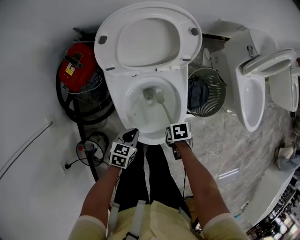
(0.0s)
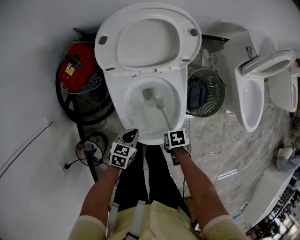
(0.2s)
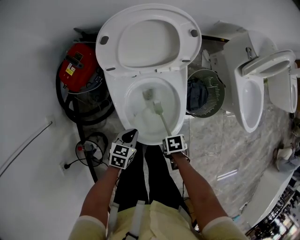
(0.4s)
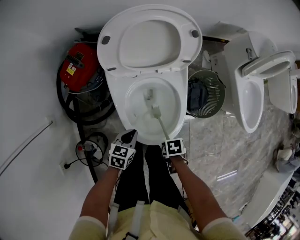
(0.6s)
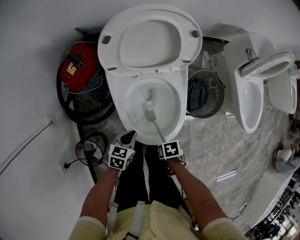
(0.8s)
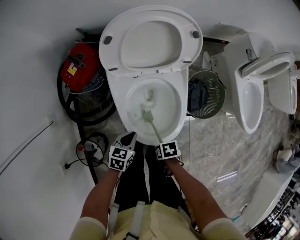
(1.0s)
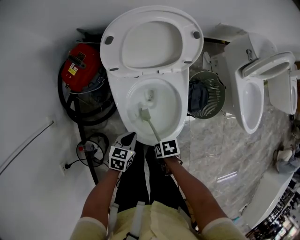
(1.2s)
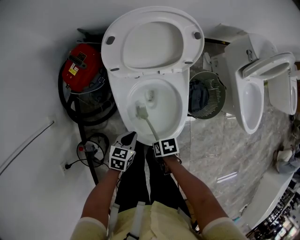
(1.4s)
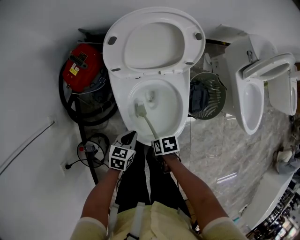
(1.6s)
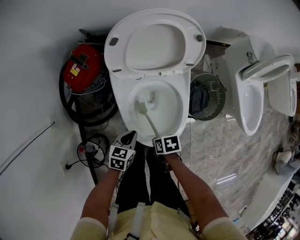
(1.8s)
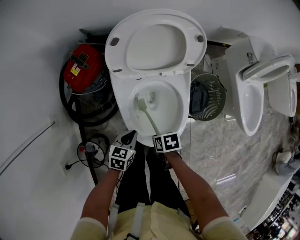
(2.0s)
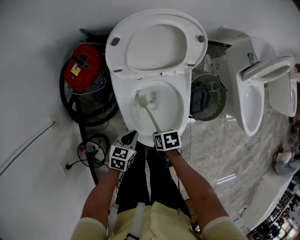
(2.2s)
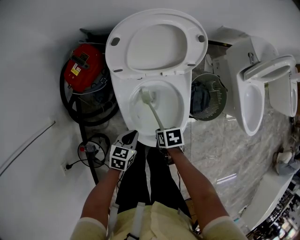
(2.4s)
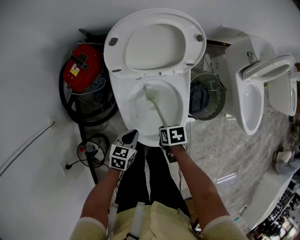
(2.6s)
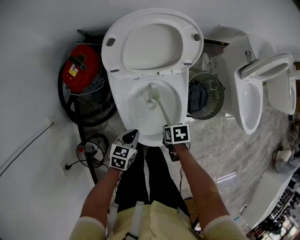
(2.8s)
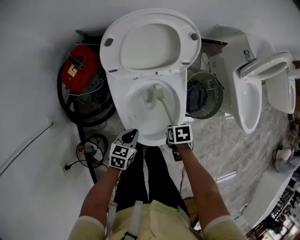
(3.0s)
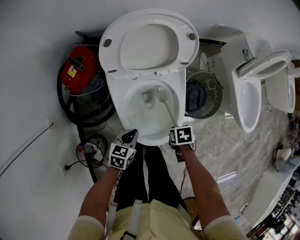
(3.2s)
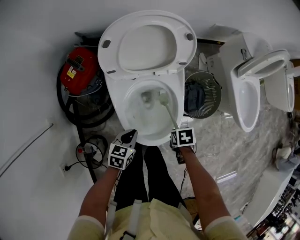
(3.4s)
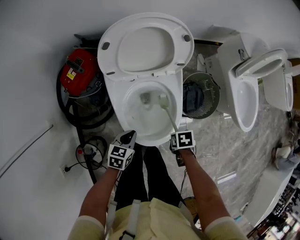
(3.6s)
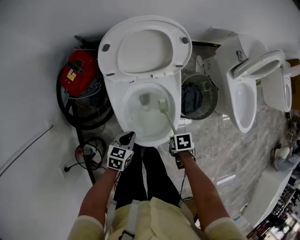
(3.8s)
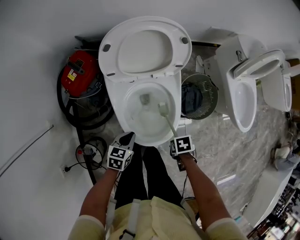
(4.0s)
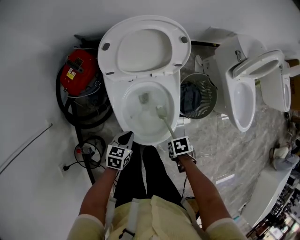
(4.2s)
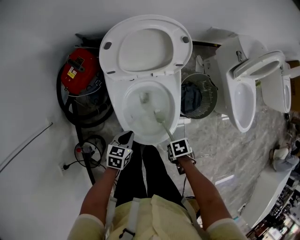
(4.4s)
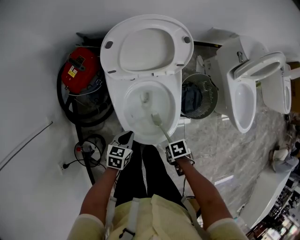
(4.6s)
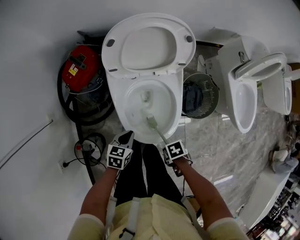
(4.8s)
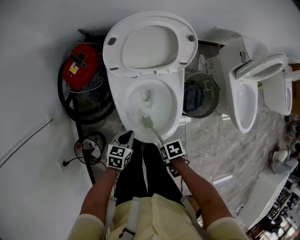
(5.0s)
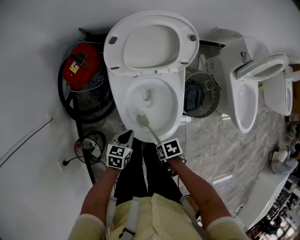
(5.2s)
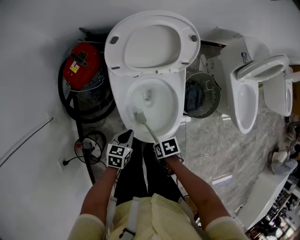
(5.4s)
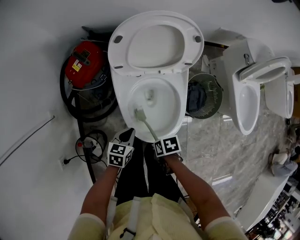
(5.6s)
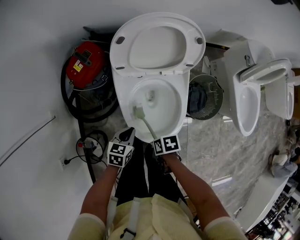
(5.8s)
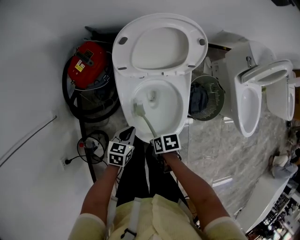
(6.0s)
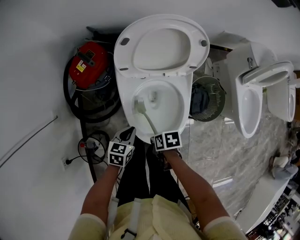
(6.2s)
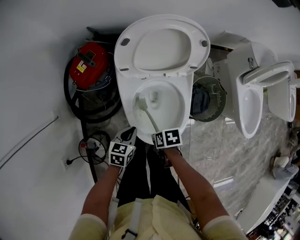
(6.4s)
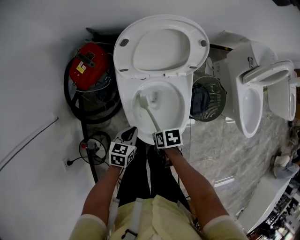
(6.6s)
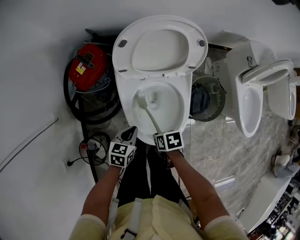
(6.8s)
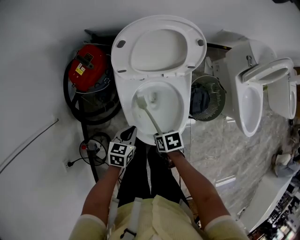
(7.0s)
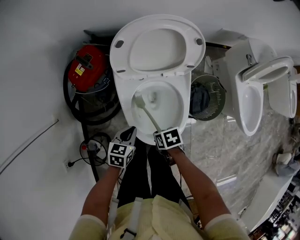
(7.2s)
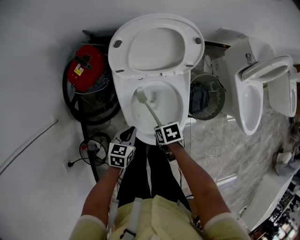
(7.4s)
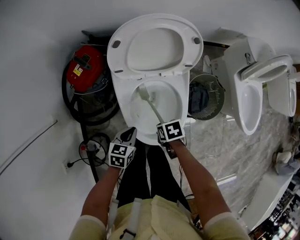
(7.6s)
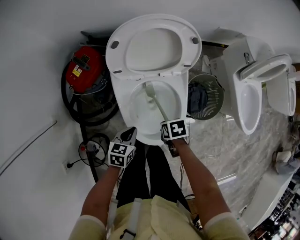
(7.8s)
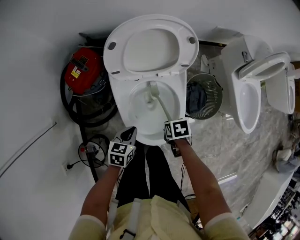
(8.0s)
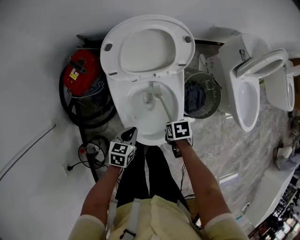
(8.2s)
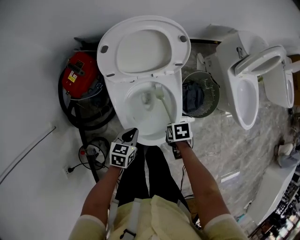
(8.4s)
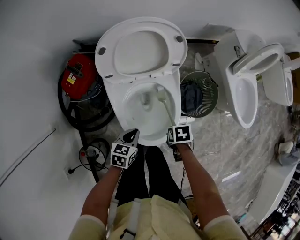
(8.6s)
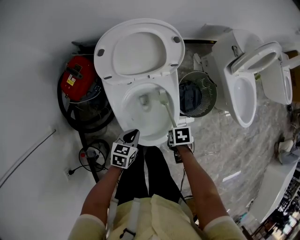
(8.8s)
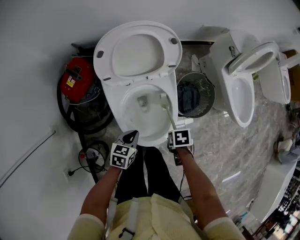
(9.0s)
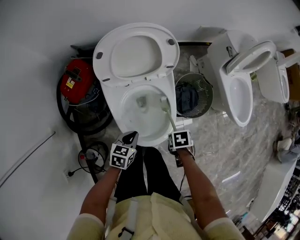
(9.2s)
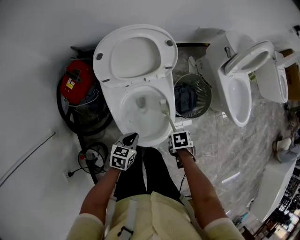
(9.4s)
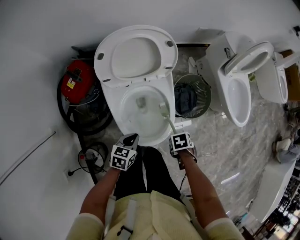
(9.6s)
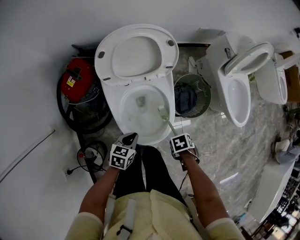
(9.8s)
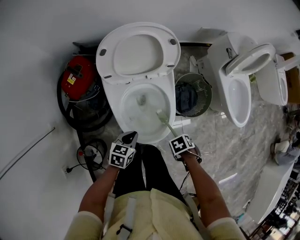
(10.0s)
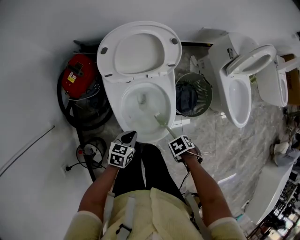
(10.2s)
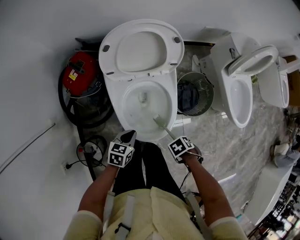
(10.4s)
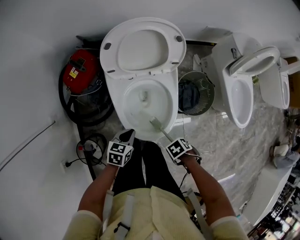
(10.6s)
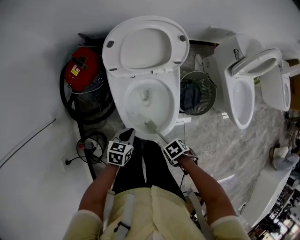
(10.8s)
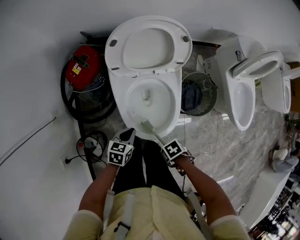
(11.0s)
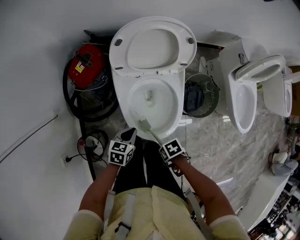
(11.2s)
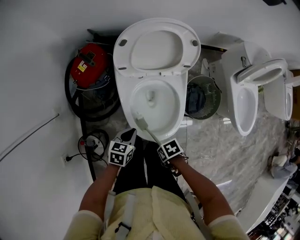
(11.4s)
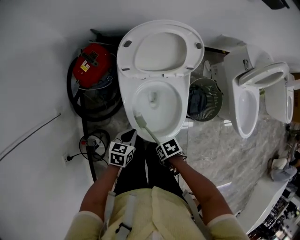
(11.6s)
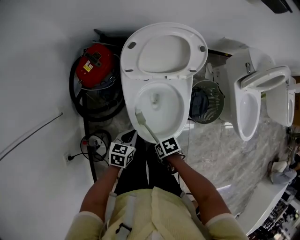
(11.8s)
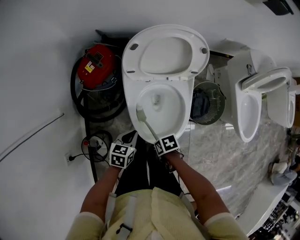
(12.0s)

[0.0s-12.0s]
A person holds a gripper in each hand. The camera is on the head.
7.6s to 9.0s: The left gripper ends up roughly 5 cm from where it was.
10.4s to 12.0s: The left gripper ends up approximately 5 cm from where it was.

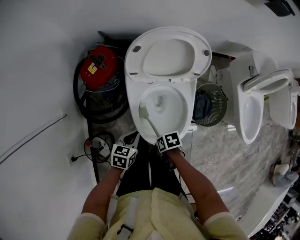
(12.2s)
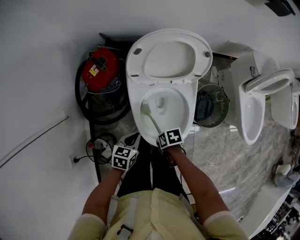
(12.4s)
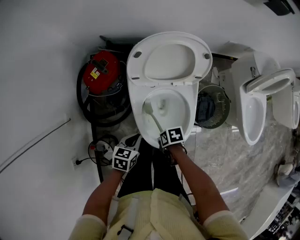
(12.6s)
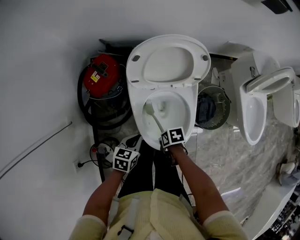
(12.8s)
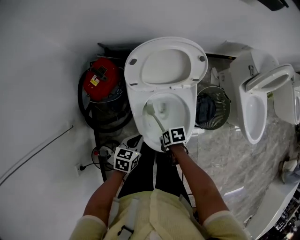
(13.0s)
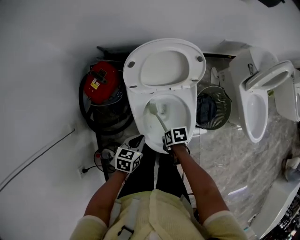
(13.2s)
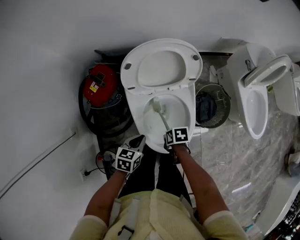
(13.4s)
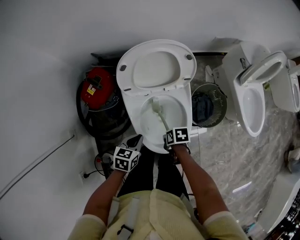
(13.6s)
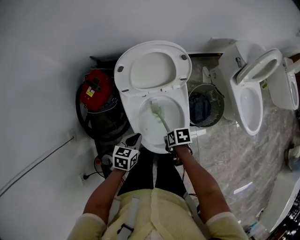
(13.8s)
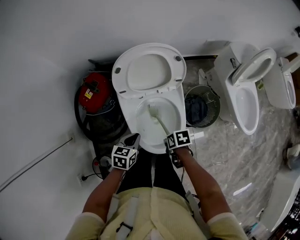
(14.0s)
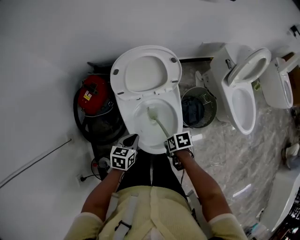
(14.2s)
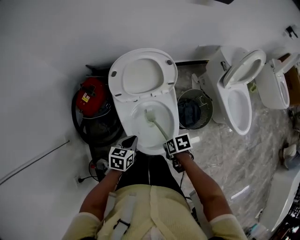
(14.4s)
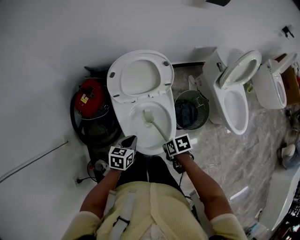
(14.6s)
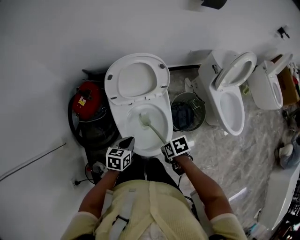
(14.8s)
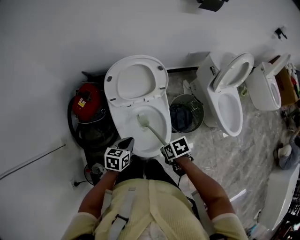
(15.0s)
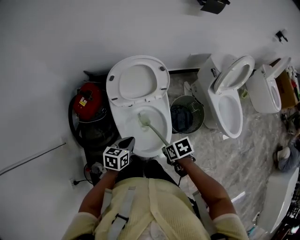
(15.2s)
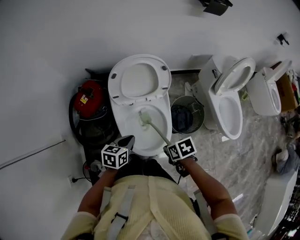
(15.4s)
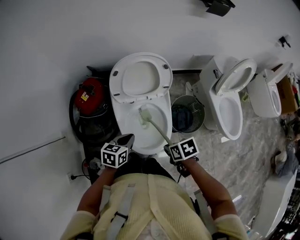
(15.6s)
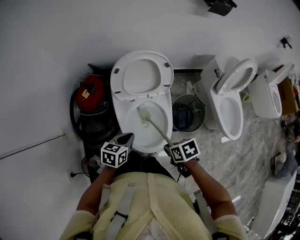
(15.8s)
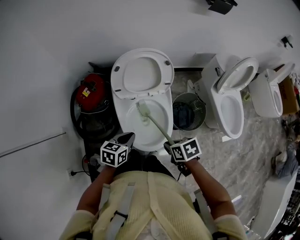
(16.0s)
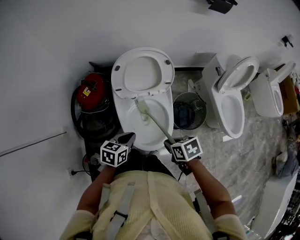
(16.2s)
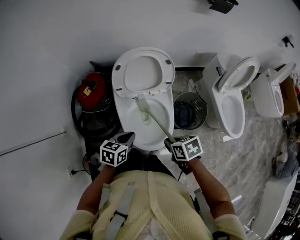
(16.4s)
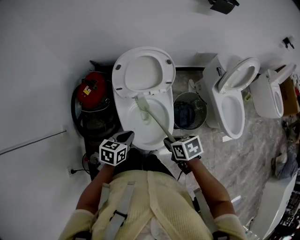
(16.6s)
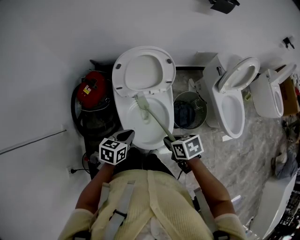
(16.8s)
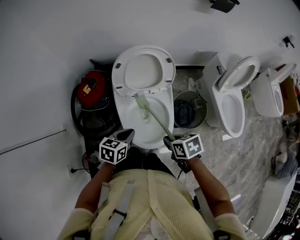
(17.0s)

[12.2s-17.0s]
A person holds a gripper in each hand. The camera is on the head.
12.2s to 13.8s: The left gripper moves roughly 5 cm.
13.8s to 15.4s: The left gripper is displaced upward by roughly 10 cm.

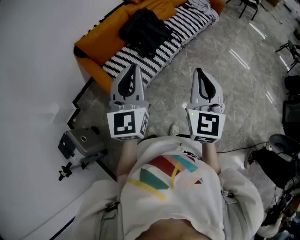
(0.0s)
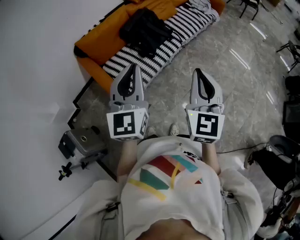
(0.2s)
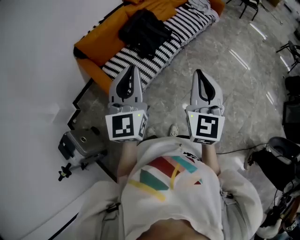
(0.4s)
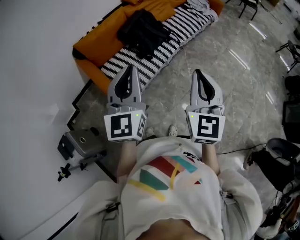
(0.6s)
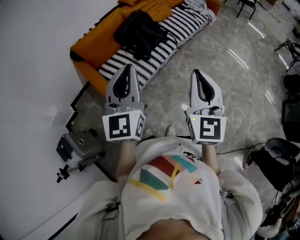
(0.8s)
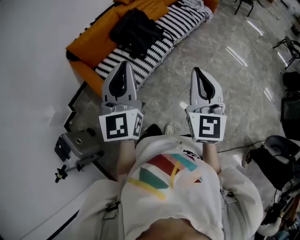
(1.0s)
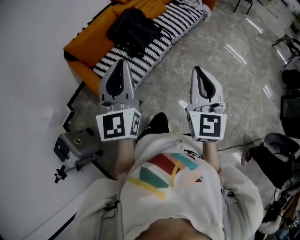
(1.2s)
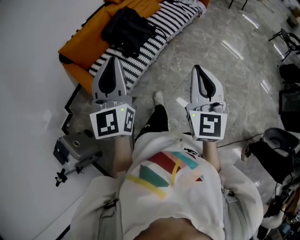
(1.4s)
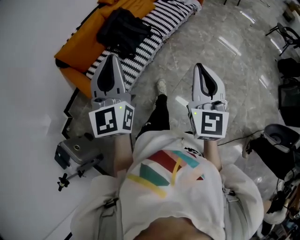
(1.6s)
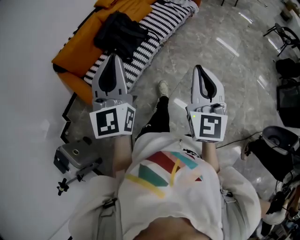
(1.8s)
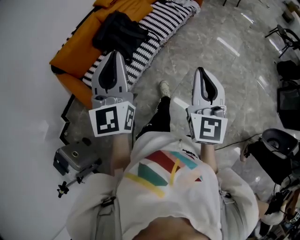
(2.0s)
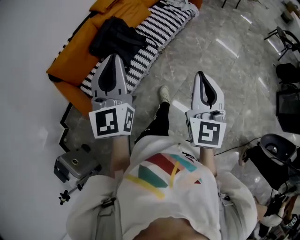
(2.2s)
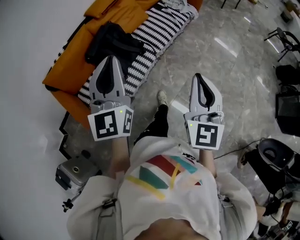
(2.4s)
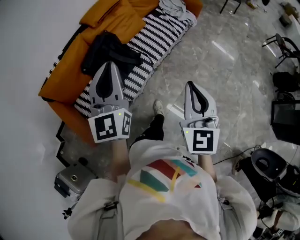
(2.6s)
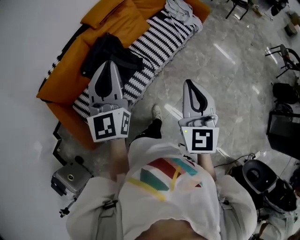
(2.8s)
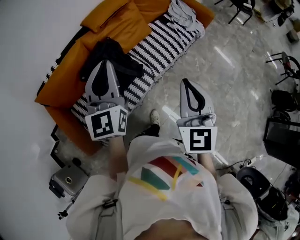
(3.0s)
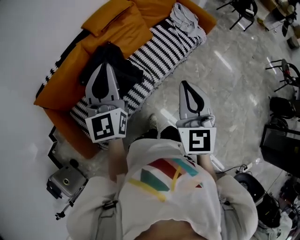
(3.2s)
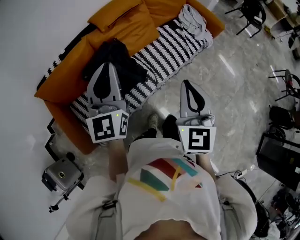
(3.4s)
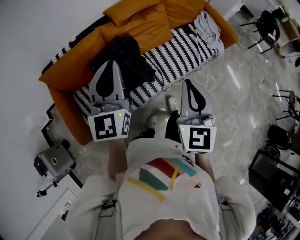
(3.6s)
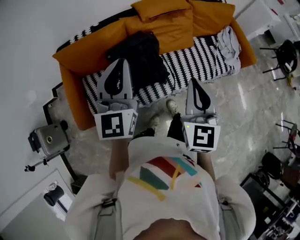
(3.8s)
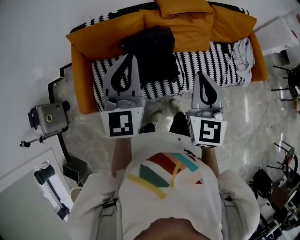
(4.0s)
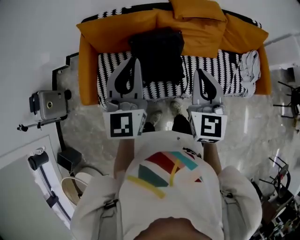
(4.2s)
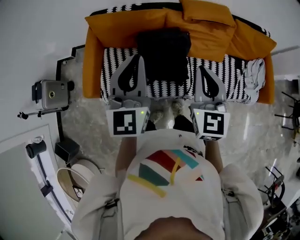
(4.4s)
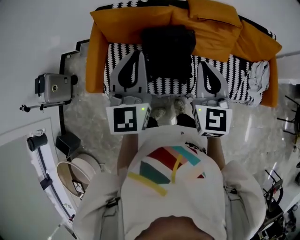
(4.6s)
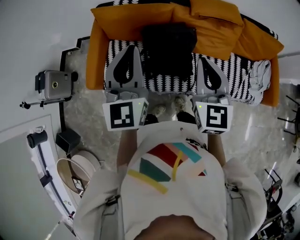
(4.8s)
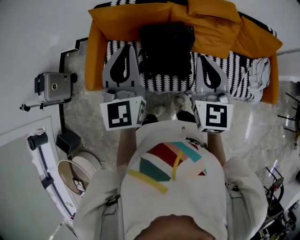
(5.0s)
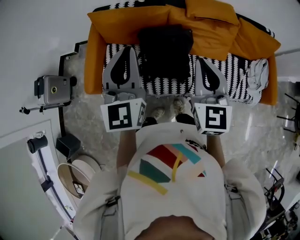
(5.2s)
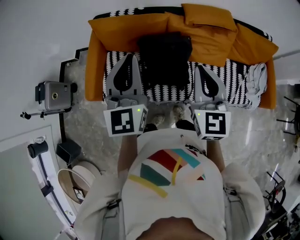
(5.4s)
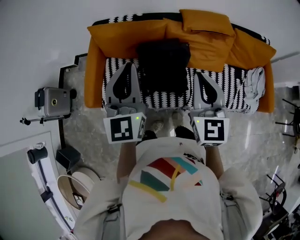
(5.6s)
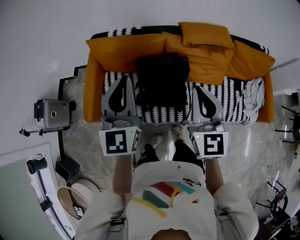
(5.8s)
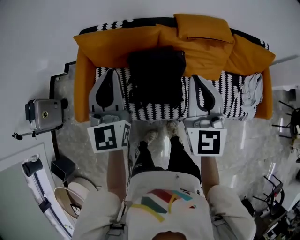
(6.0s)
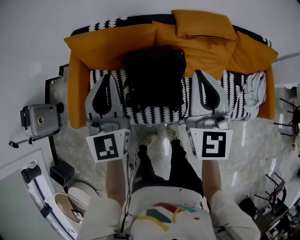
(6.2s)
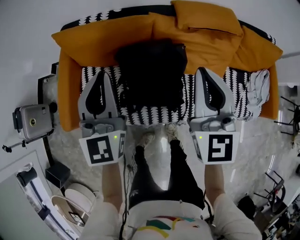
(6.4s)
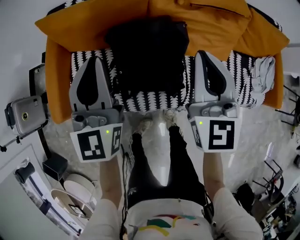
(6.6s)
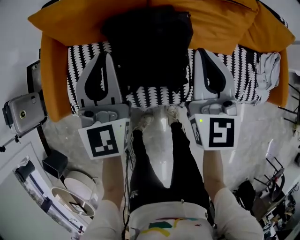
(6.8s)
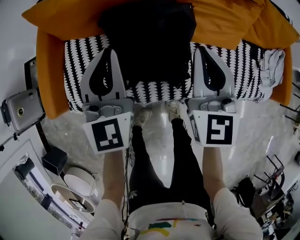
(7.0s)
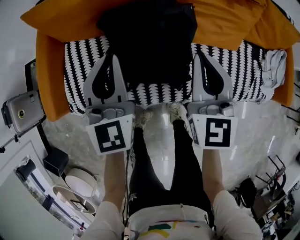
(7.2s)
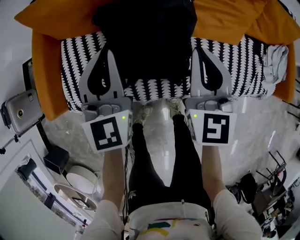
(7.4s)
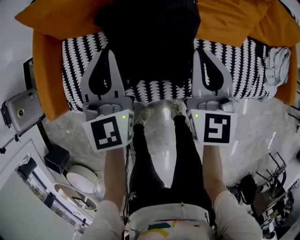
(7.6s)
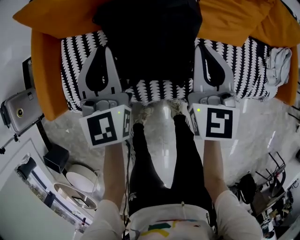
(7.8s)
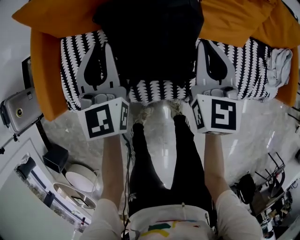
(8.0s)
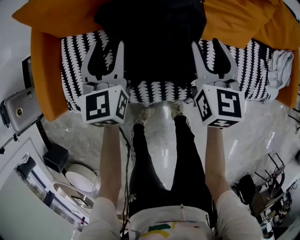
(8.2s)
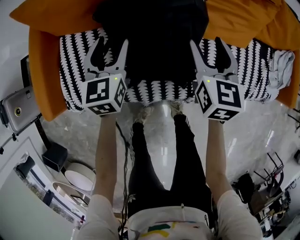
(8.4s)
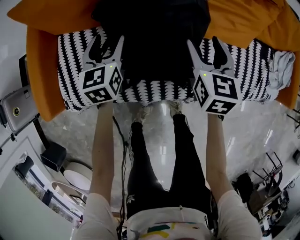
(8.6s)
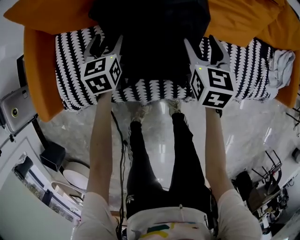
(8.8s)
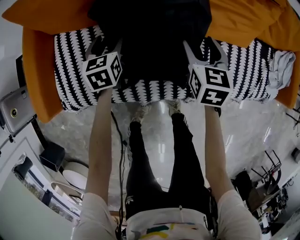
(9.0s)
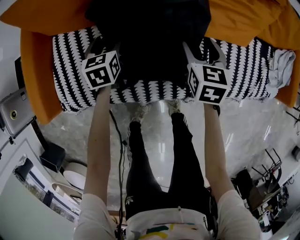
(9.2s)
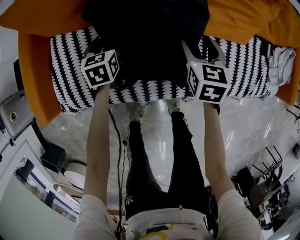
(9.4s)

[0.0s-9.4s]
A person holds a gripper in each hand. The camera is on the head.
0.0s to 1.6s: The left gripper moves to the right and forward, roughly 10 cm. The right gripper travels to the right by approximately 10 cm.
1.6s to 3.2s: Both grippers are carried forward, approximately 40 cm.
3.2s to 4.8s: The left gripper moves roughly 10 cm, and rotates roughly 40 degrees, while the right gripper changes place by approximately 20 cm, and swivels about 50 degrees.
4.8s to 6.2s: The left gripper moves forward and downward, roughly 15 cm. Meanwhile the right gripper shifts about 10 cm forward.
6.2s to 7.8s: Both grippers move downward, about 25 cm.
7.8s to 9.4s: The left gripper is displaced downward by approximately 25 cm, angles its fingers downward, by about 40 degrees, and opens its fingers. The right gripper goes some 15 cm downward, rotates some 30 degrees, and opens up.
